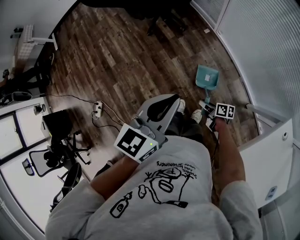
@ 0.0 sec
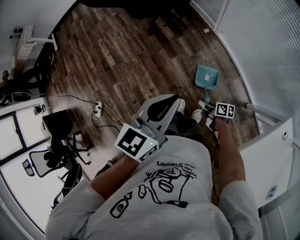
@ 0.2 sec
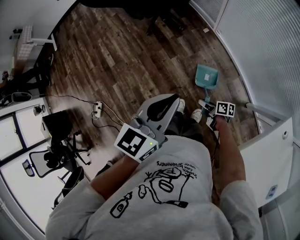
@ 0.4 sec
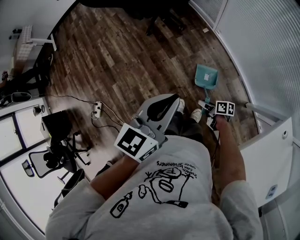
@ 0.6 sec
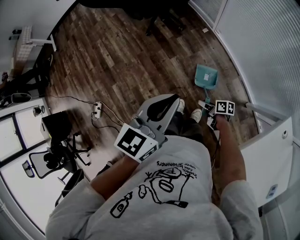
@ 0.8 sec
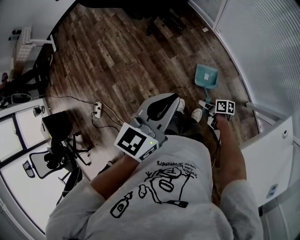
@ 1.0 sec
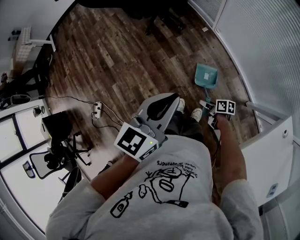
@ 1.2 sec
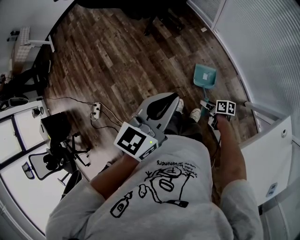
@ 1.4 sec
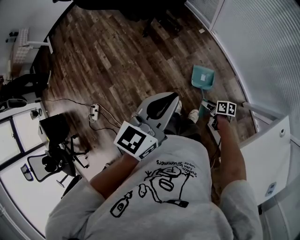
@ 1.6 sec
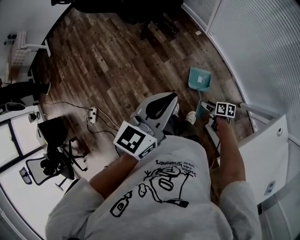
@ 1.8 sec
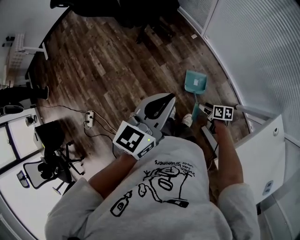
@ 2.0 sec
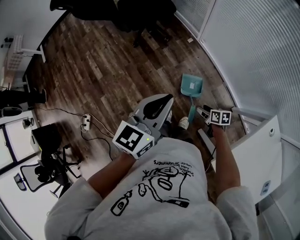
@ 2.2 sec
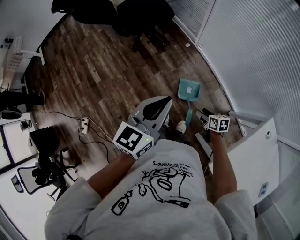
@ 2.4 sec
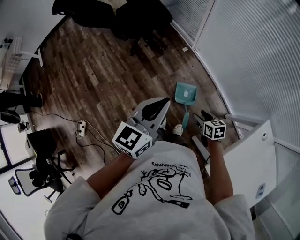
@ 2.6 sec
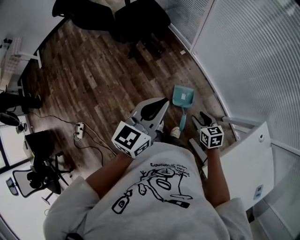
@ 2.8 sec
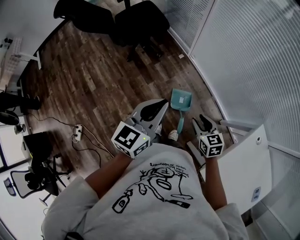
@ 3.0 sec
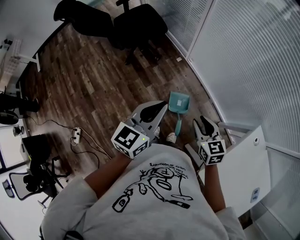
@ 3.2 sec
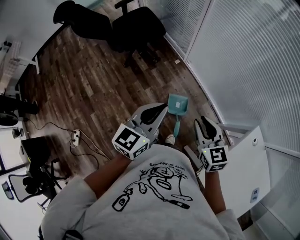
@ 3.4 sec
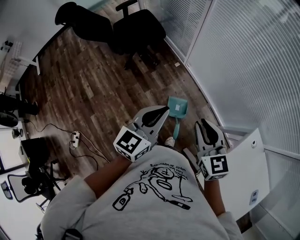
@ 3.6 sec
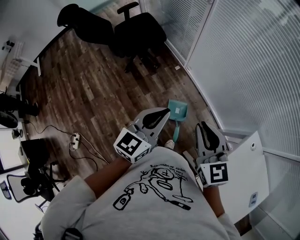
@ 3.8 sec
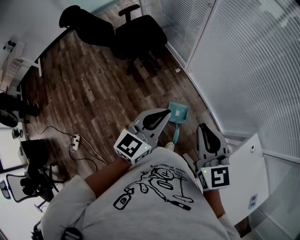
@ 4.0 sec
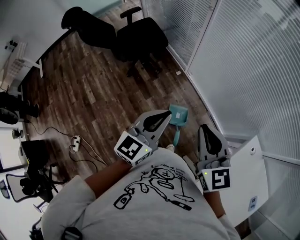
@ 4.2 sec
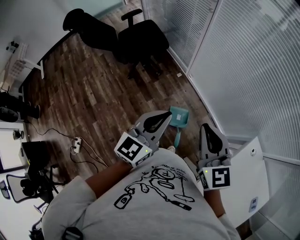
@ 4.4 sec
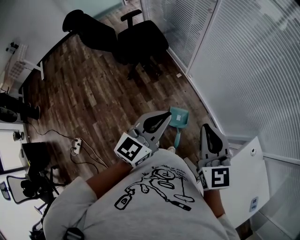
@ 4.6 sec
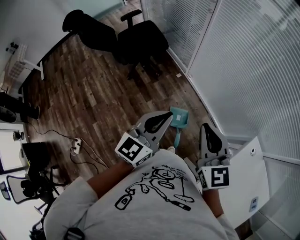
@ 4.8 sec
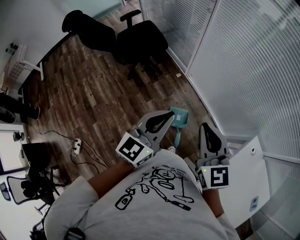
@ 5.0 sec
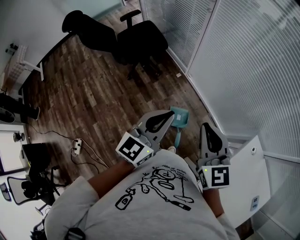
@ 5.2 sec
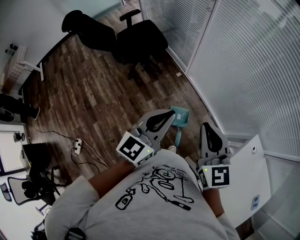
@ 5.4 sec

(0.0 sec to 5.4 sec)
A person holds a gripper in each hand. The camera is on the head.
0.0 sec - 1.4 sec: The right gripper opens up.
1.4 sec - 2.8 sec: The right gripper travels upward by roughly 20 cm, and rolls counterclockwise, seen from behind, by roughly 40 degrees.
2.8 sec - 4.0 sec: The left gripper changes place by about 5 cm. Meanwhile the right gripper goes roughly 35 cm upward, swivels about 40 degrees, and closes.
4.0 sec - 5.4 sec: The grippers move only a little.

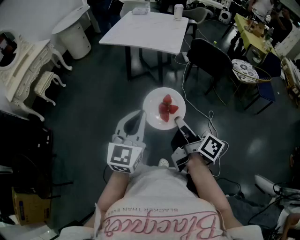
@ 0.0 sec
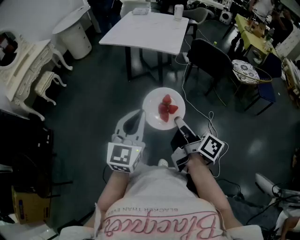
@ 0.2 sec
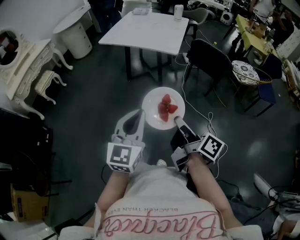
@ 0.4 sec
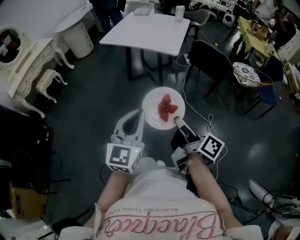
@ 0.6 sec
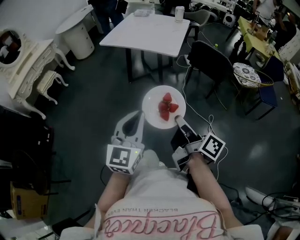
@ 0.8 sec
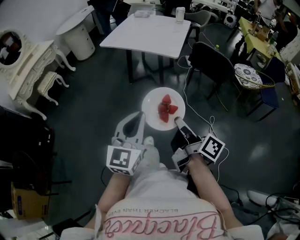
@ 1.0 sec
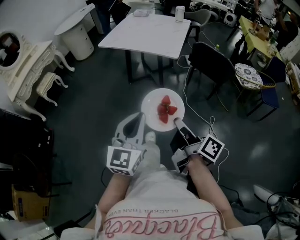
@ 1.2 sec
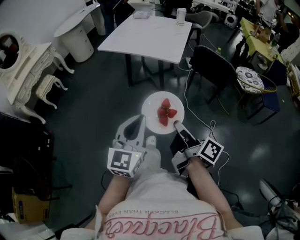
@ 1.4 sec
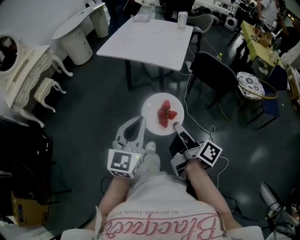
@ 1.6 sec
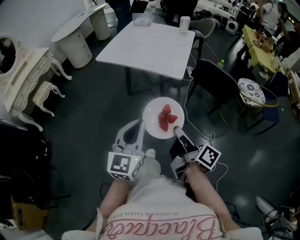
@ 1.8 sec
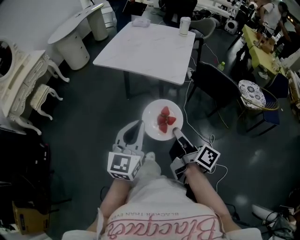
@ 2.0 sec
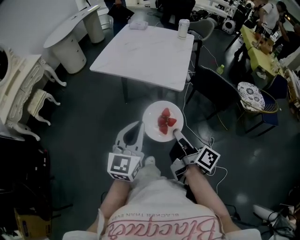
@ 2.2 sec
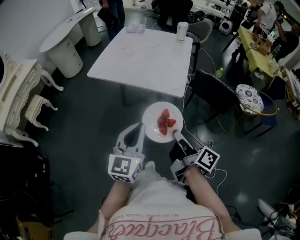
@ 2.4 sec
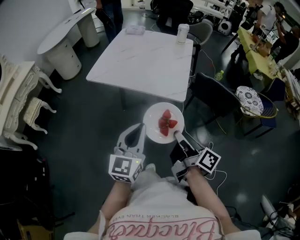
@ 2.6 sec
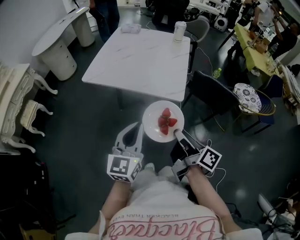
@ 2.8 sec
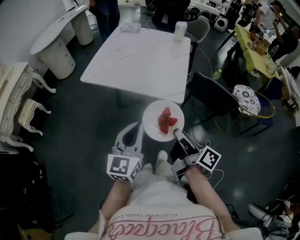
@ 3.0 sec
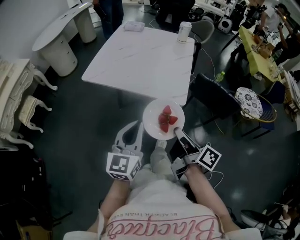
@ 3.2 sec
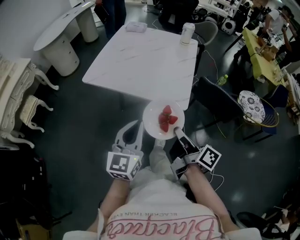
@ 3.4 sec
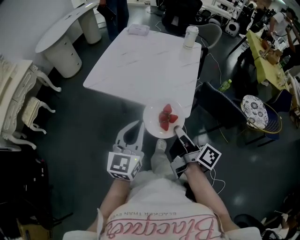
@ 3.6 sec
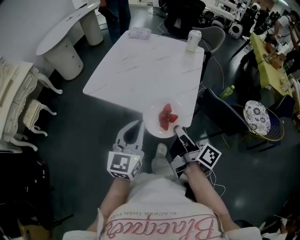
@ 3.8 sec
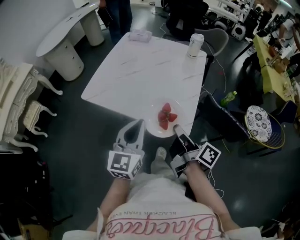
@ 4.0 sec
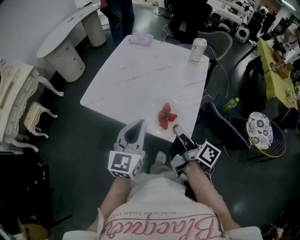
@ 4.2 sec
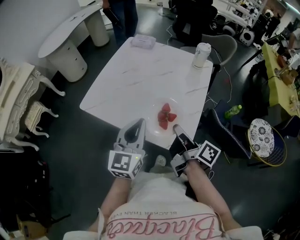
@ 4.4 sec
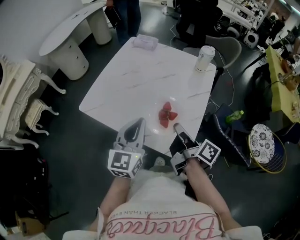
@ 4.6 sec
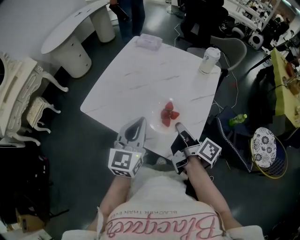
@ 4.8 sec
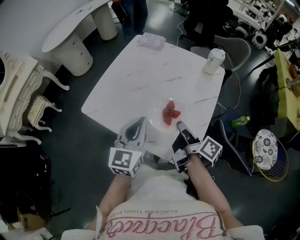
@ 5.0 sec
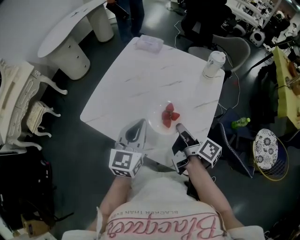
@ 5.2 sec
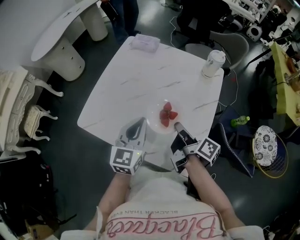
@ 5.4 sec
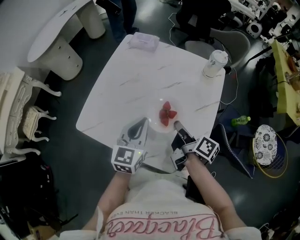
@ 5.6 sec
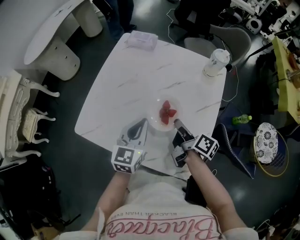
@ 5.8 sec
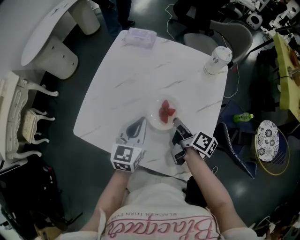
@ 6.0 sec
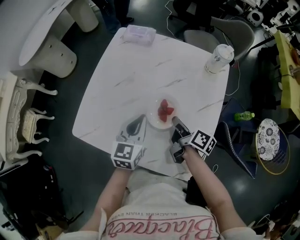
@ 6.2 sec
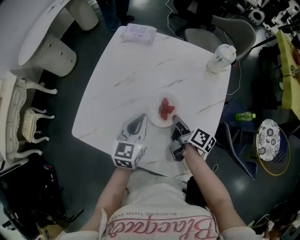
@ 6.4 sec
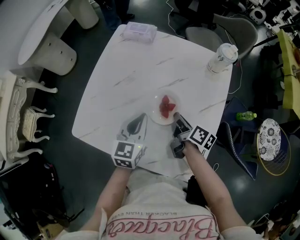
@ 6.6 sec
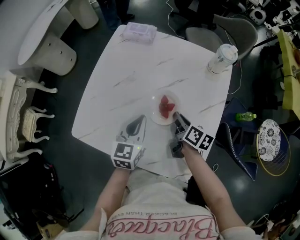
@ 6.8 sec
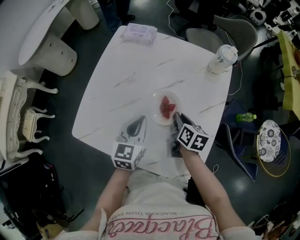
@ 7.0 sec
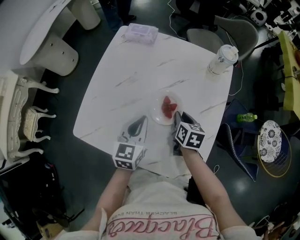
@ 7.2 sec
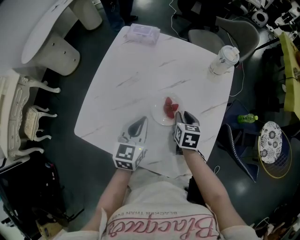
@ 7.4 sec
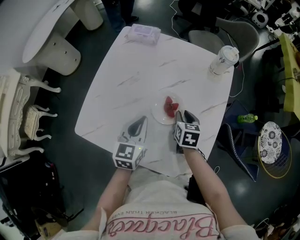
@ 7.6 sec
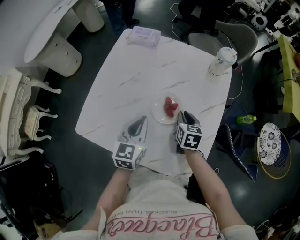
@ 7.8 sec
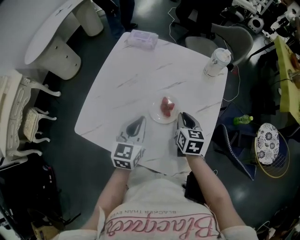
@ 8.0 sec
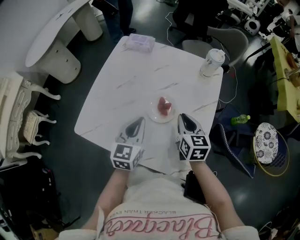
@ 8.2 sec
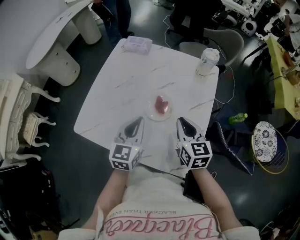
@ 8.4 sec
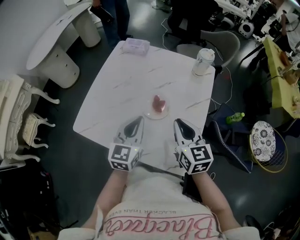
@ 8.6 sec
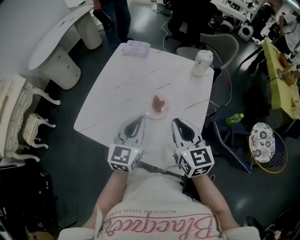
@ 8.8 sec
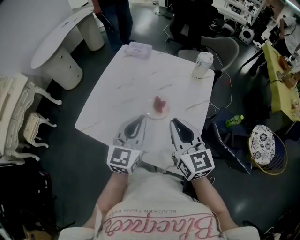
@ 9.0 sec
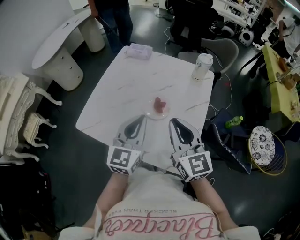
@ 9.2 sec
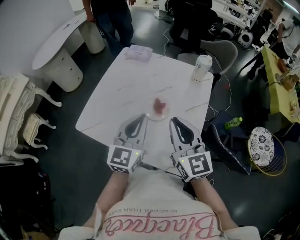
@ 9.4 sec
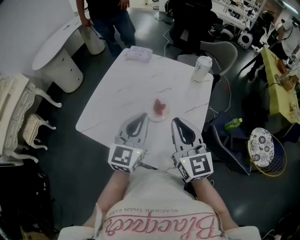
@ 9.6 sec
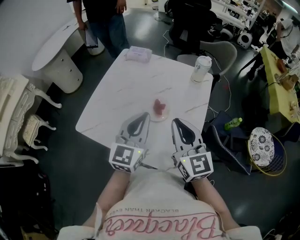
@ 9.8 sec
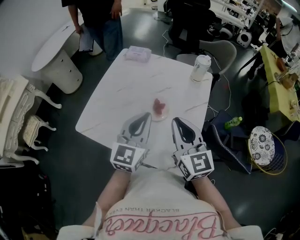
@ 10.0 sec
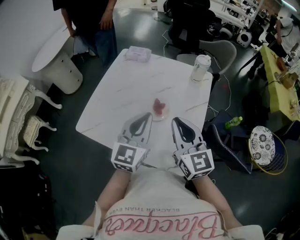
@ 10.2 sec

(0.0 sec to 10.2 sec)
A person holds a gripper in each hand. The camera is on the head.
0.0 sec - 1.4 sec: Both grippers travel together forward, about 5 cm.
1.4 sec - 3.0 sec: Both grippers move forward, roughly 30 cm.
3.0 sec - 4.4 sec: The grippers both shift forward by approximately 30 cm.
4.4 sec - 5.8 sec: The grippers both shift forward and downward by approximately 25 cm.
5.8 sec - 7.2 sec: The left gripper shifts about 5 cm downward. The right gripper heads downward and forward, covering some 10 cm, and turns by some 50 degrees.
7.2 sec - 8.8 sec: The right gripper heads upward and backward, covering some 25 cm, and angles its fingers upward, by roughly 30 degrees; the left gripper goes some 15 cm upward and backward.
8.8 sec - 10.2 sec: The left gripper ends up approximately 5 cm from where it was.

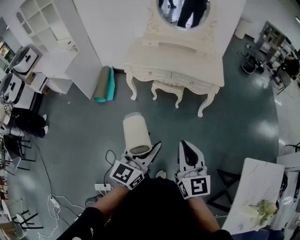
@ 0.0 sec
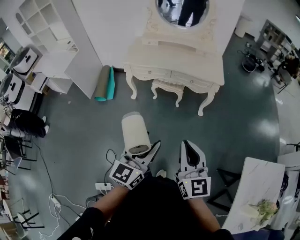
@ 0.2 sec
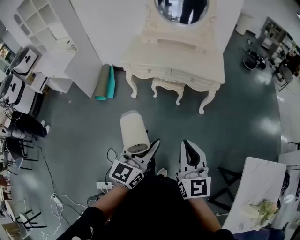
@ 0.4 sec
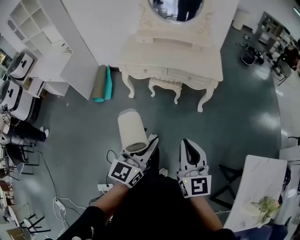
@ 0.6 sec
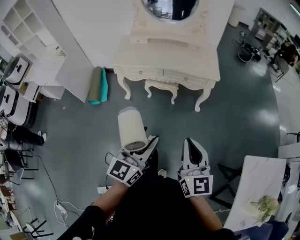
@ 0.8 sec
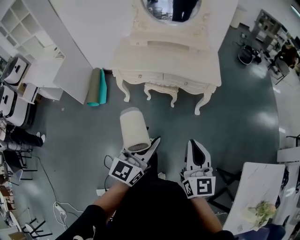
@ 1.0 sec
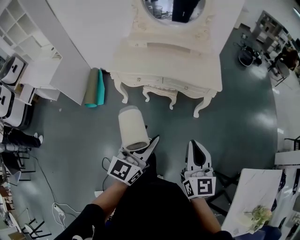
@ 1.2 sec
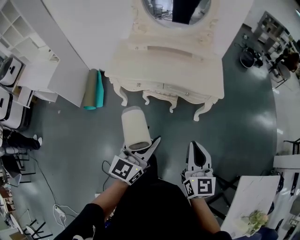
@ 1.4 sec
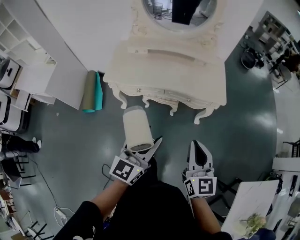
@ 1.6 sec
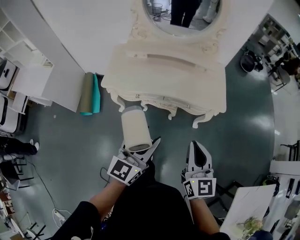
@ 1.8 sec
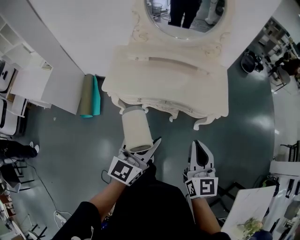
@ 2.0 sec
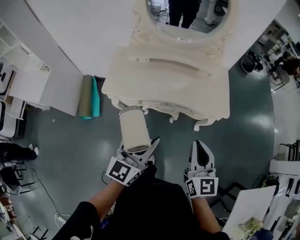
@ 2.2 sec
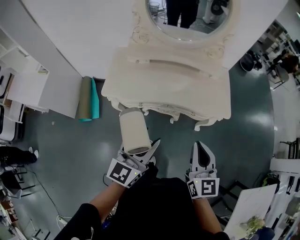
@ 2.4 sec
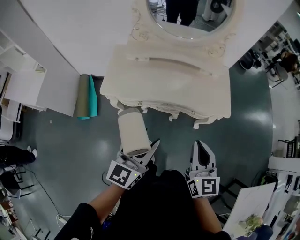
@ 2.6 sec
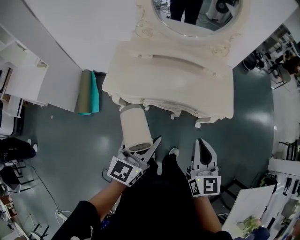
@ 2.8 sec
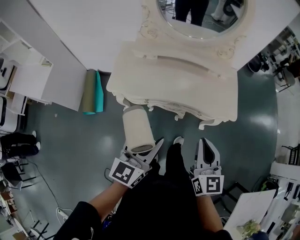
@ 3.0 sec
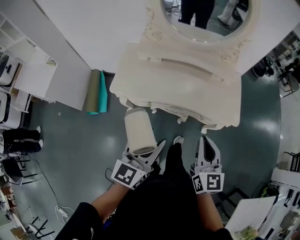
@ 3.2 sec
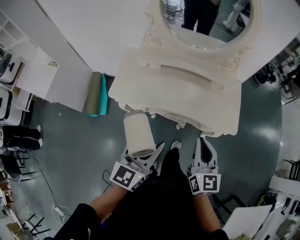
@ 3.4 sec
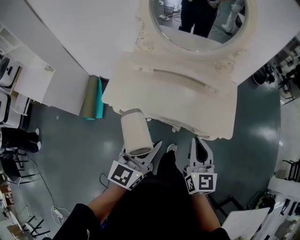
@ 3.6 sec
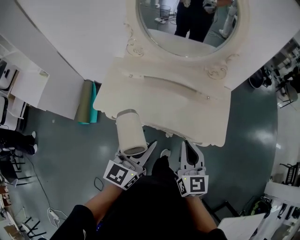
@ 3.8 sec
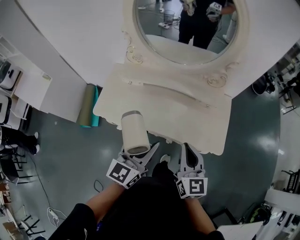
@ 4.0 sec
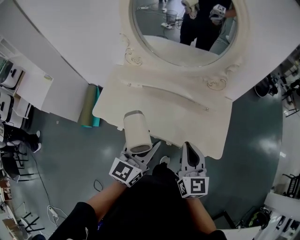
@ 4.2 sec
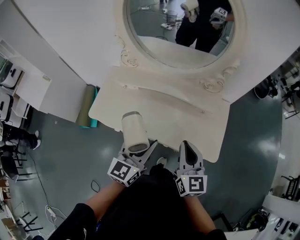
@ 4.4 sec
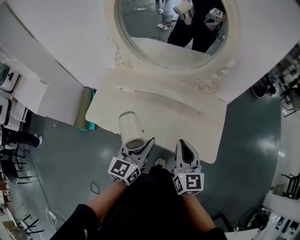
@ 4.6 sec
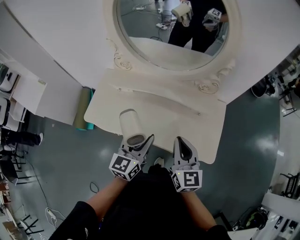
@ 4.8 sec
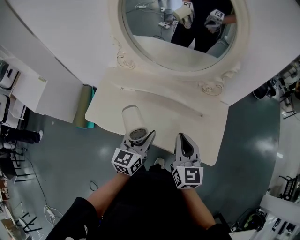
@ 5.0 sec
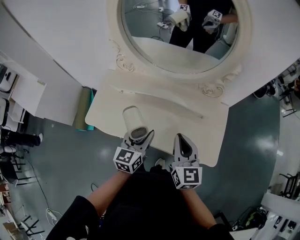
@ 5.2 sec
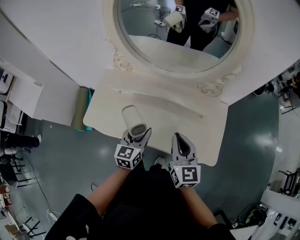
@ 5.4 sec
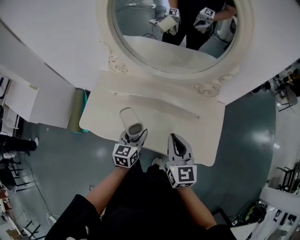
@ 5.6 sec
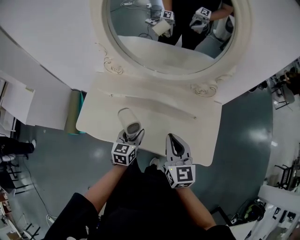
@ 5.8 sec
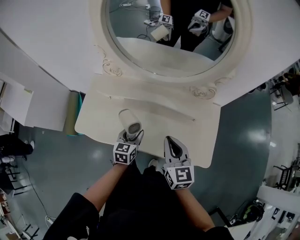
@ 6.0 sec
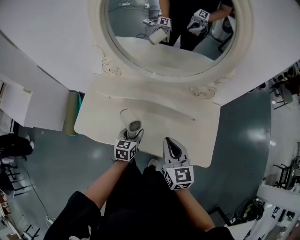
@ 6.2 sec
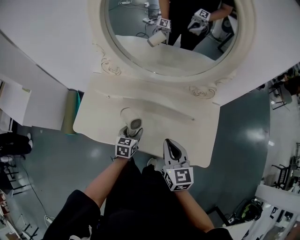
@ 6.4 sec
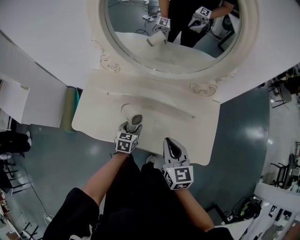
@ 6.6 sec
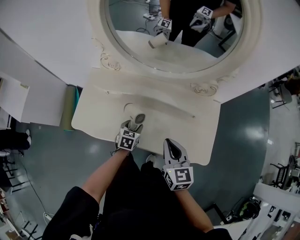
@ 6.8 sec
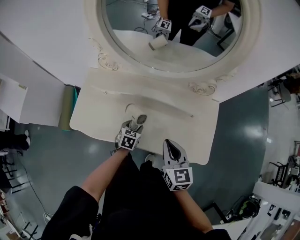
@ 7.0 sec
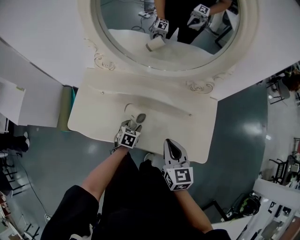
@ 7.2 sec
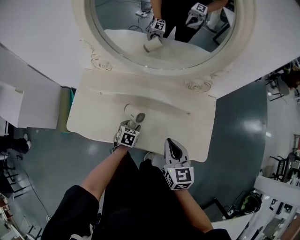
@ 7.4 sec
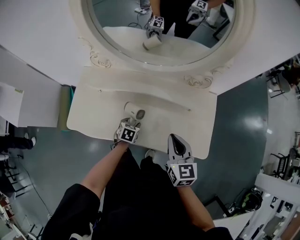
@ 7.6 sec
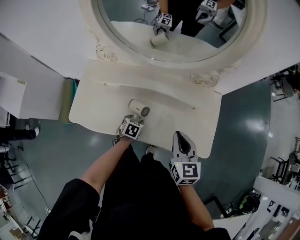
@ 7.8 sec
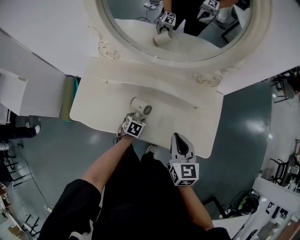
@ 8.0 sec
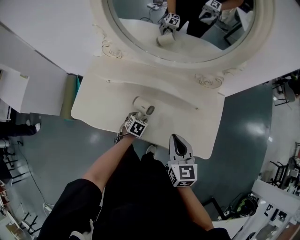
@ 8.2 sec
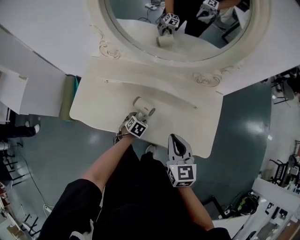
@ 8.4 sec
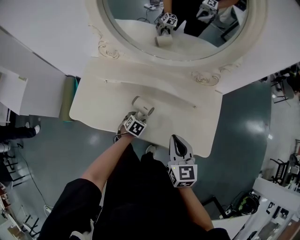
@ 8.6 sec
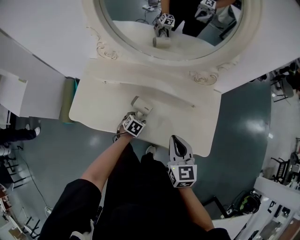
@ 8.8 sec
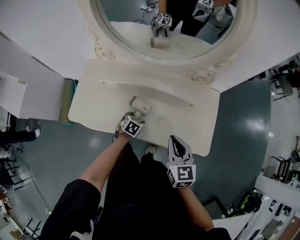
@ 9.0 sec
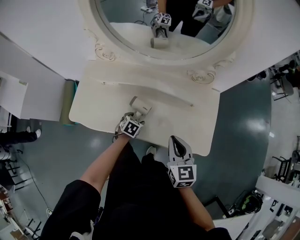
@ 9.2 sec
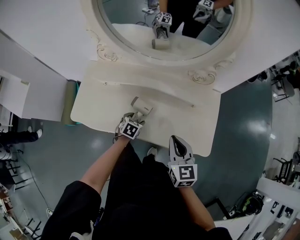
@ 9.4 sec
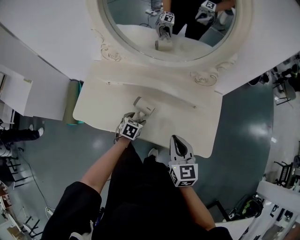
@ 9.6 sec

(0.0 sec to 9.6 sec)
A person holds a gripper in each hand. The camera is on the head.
0.0 sec - 1.6 sec: The grippers both shift forward by about 30 cm.
1.6 sec - 3.2 sec: Both grippers travel together forward and to the left, some 15 cm.
3.2 sec - 4.8 sec: Both grippers move forward and to the right, approximately 25 cm.
4.8 sec - 6.4 sec: The right gripper moves forward, some 5 cm, while the left gripper moves downward and forward, about 25 cm, and swivels about 30 degrees.
6.4 sec - 8.0 sec: The right gripper shifts by roughly 5 cm. Meanwhile the left gripper travels downward by roughly 10 cm, and turns by roughly 30 degrees.
8.0 sec - 9.6 sec: The grippers stay close to where they were, moving slightly.
